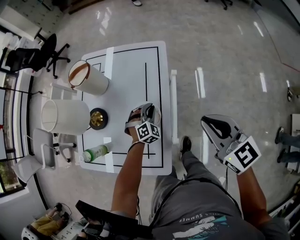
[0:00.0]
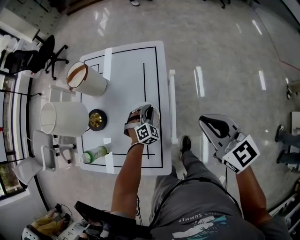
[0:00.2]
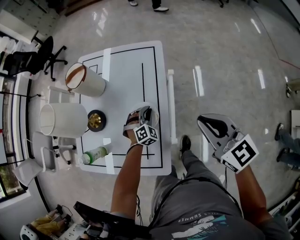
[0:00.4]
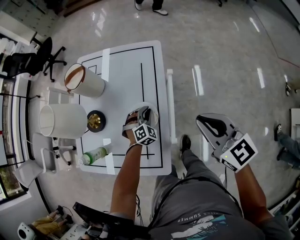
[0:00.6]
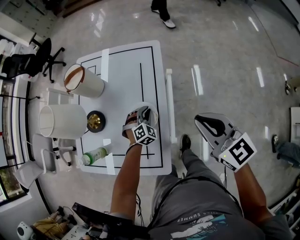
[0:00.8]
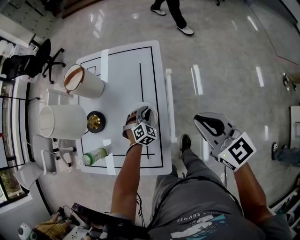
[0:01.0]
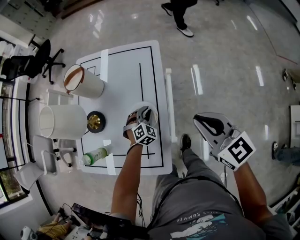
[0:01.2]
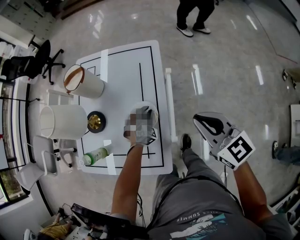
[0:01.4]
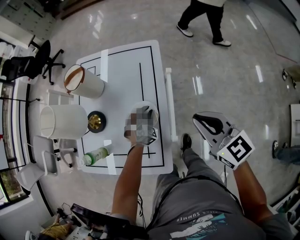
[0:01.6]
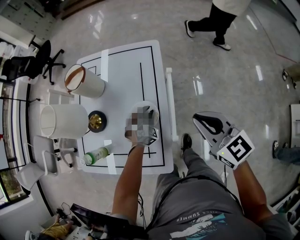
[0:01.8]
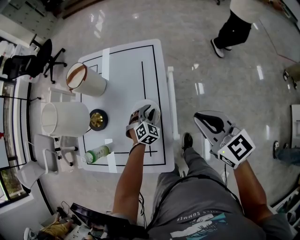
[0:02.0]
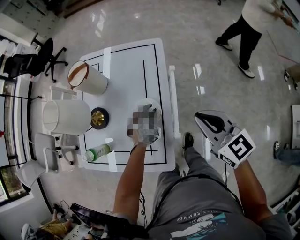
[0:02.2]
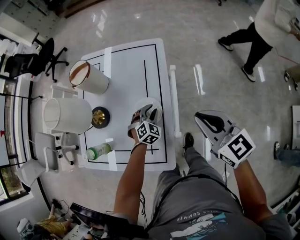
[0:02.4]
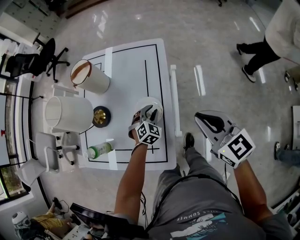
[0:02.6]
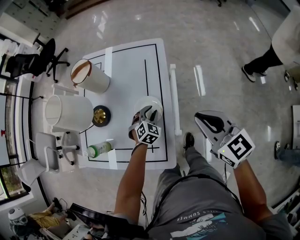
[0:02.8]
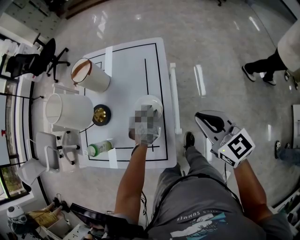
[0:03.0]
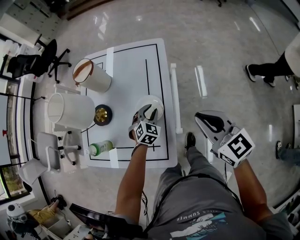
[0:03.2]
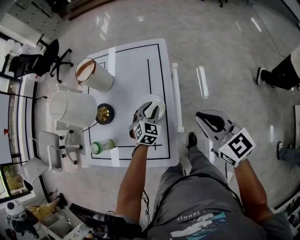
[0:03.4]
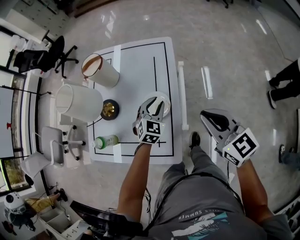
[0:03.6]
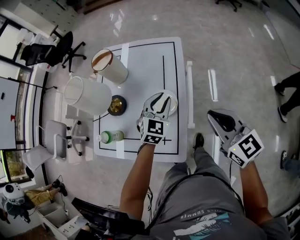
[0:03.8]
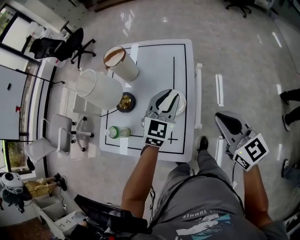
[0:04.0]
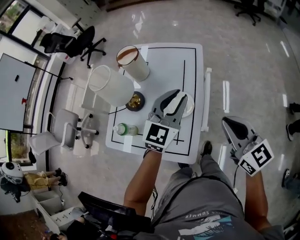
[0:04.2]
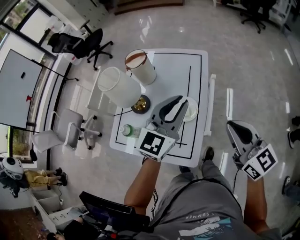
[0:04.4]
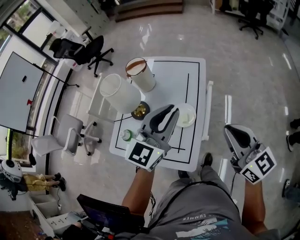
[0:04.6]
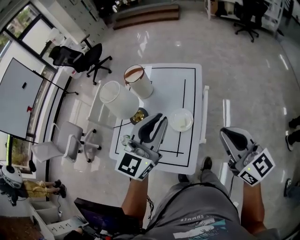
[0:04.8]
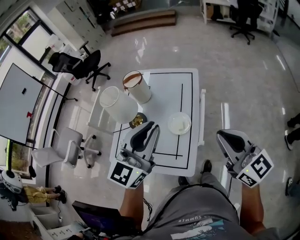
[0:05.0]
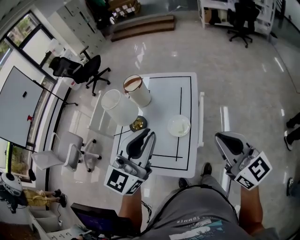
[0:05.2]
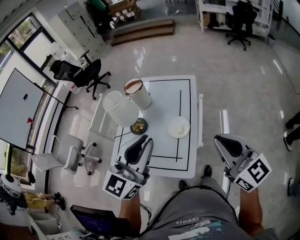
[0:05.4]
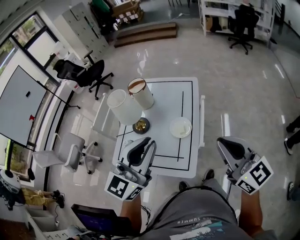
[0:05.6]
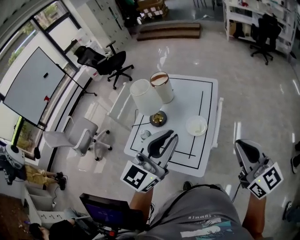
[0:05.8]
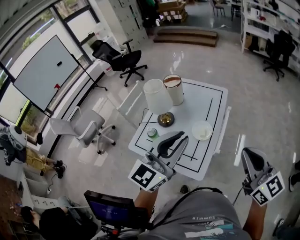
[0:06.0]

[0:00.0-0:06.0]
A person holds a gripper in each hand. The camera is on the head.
0:00.0 to 0:03.0: The grippers make only small movements.
0:03.0 to 0:04.4: The right gripper shifts approximately 10 cm upward and backward, while the left gripper goes about 35 cm upward, and tips its fingers upward by roughly 40 degrees.
0:04.4 to 0:06.0: The two grippers go some 20 cm backward and upward.

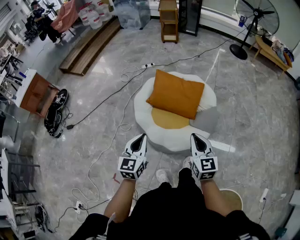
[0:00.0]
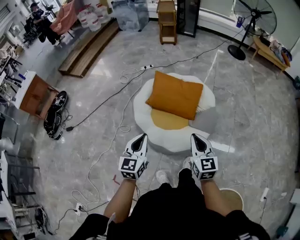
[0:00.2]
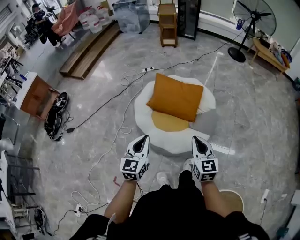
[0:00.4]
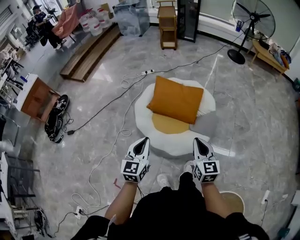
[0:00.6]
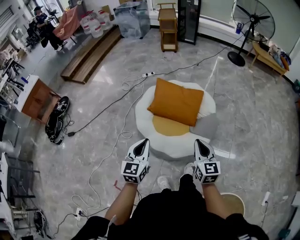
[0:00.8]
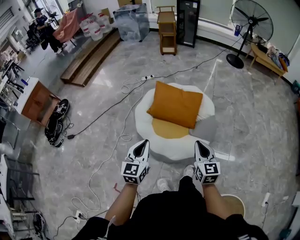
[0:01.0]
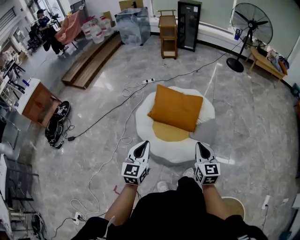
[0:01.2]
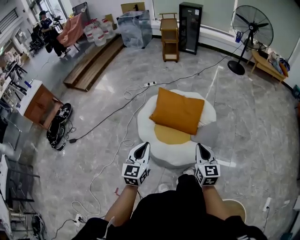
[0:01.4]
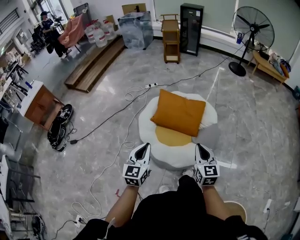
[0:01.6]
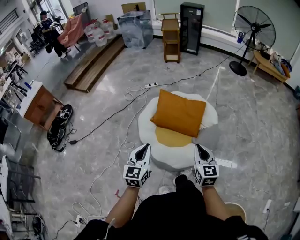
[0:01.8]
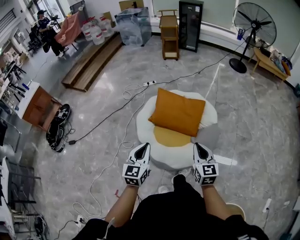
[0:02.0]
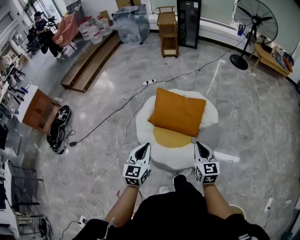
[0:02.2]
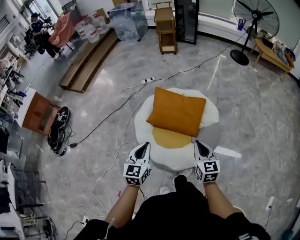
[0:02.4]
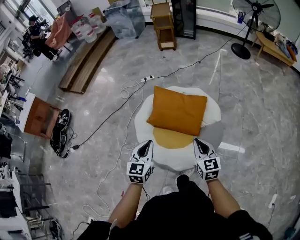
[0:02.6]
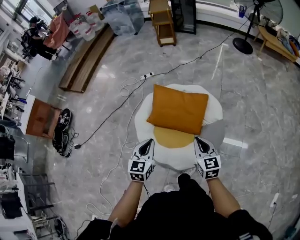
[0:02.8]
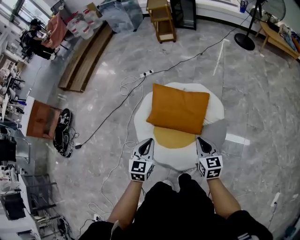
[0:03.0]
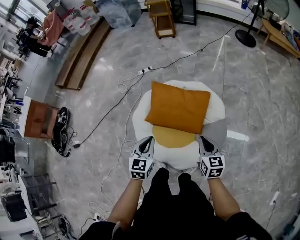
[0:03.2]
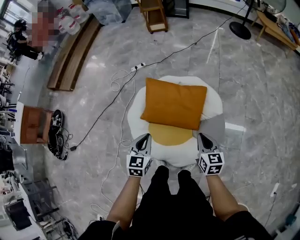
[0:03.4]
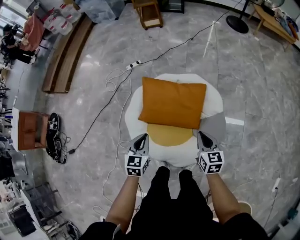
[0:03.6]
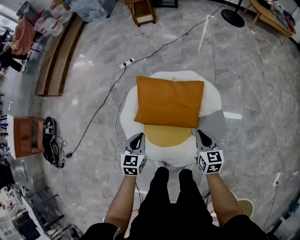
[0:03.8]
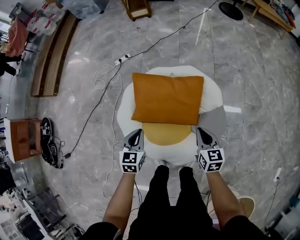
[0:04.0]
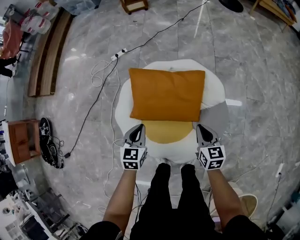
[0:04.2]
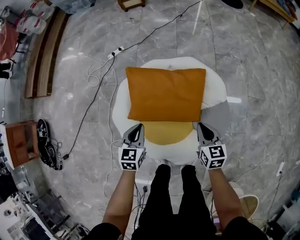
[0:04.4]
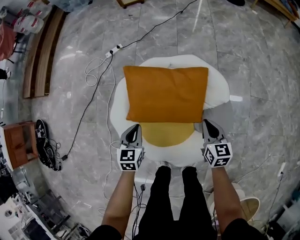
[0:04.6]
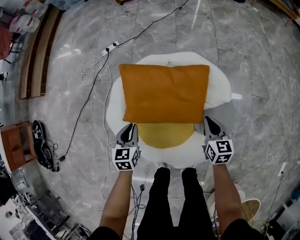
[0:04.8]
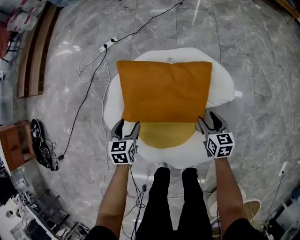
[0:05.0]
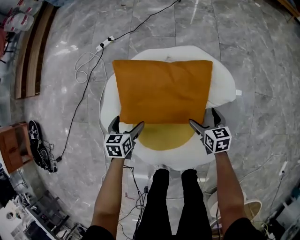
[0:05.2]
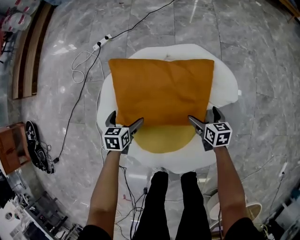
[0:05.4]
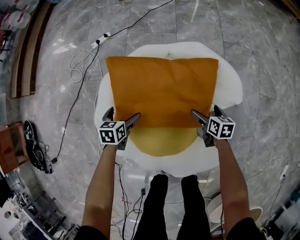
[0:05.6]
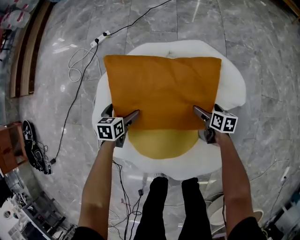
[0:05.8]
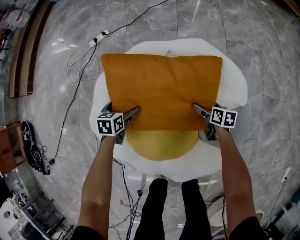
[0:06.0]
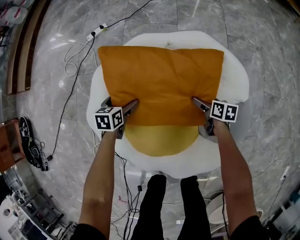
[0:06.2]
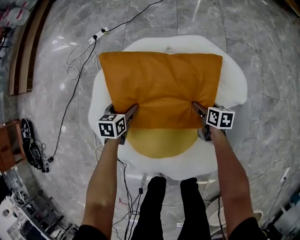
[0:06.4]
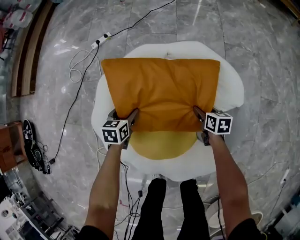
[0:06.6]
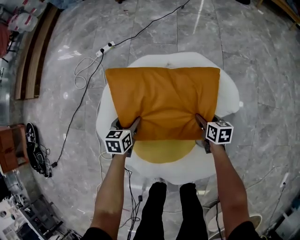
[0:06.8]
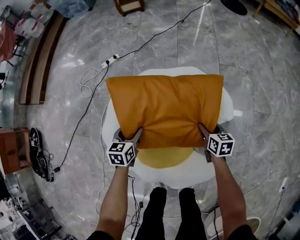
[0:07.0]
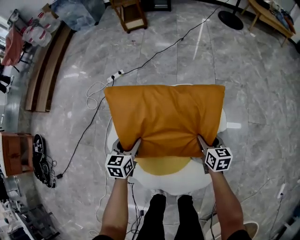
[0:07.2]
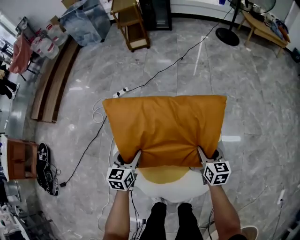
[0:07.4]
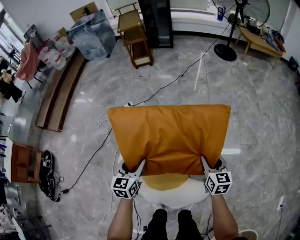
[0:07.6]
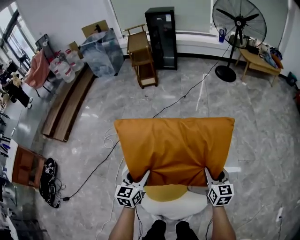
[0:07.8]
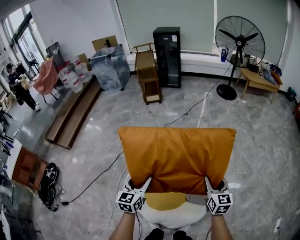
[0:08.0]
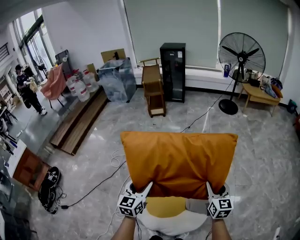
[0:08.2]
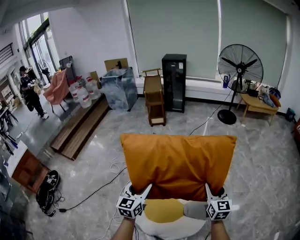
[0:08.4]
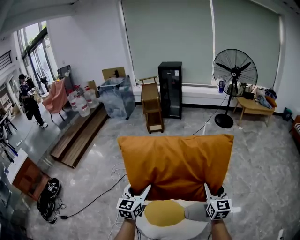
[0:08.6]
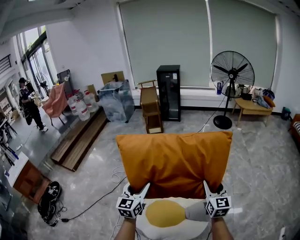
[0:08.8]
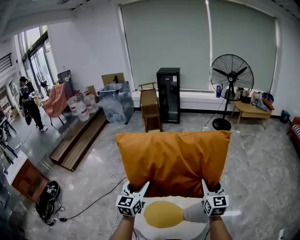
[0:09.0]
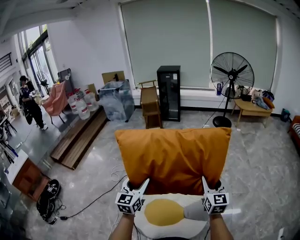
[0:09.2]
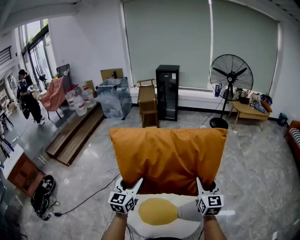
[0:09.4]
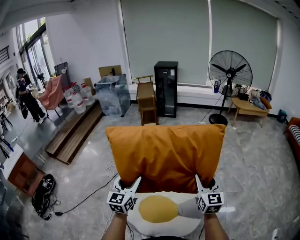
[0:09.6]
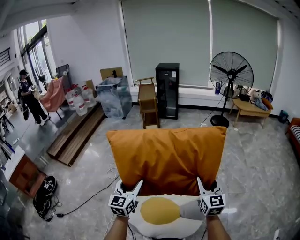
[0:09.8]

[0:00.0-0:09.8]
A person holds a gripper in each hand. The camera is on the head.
0:00.0 to 0:01.4: There are only small adjustments of the grippers.
0:01.4 to 0:02.8: The left gripper is displaced forward and downward by approximately 20 cm. The right gripper goes some 20 cm forward.
0:02.8 to 0:04.2: Both grippers move downward and forward, about 25 cm. The right gripper changes its angle by about 20 degrees.
0:04.2 to 0:05.6: The grippers both shift downward by about 30 cm. The right gripper swivels approximately 20 degrees, and opens up. Meanwhile the left gripper rotates roughly 20 degrees, and opens its fingers.
0:05.6 to 0:07.0: Both grippers travel together upward, roughly 10 cm. The left gripper closes up; the right gripper closes up.
0:07.0 to 0:08.4: The two grippers go approximately 50 cm upward. The left gripper tilts its fingers about 30 degrees upward. Meanwhile the right gripper tips its fingers upward by some 30 degrees.
0:08.4 to 0:09.8: Both grippers move upward, approximately 5 cm.

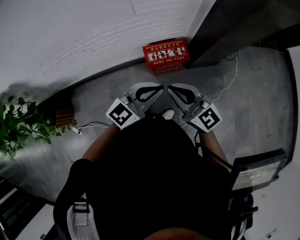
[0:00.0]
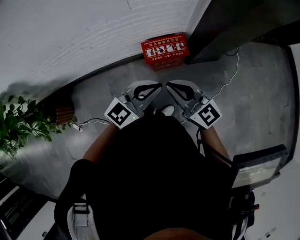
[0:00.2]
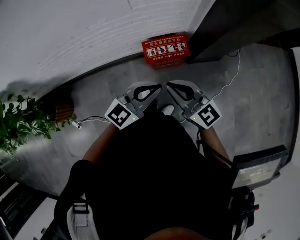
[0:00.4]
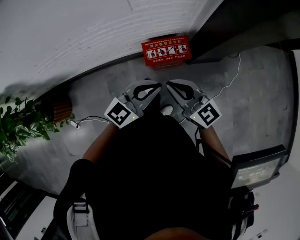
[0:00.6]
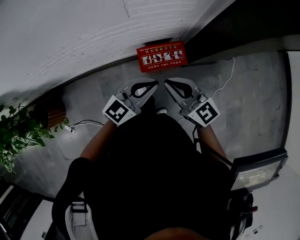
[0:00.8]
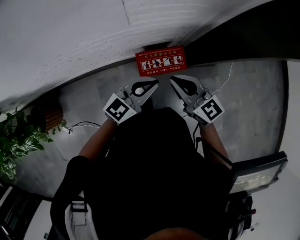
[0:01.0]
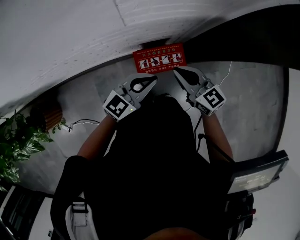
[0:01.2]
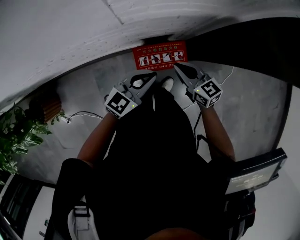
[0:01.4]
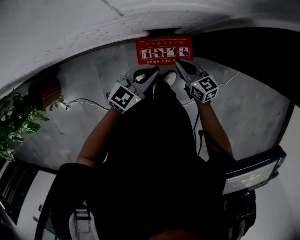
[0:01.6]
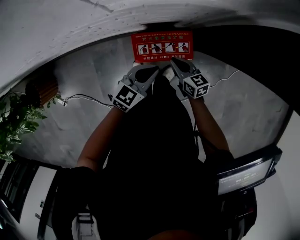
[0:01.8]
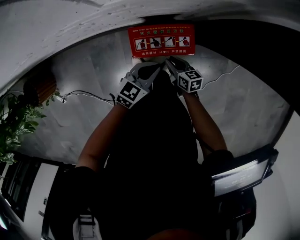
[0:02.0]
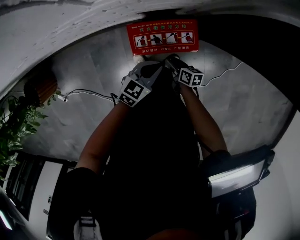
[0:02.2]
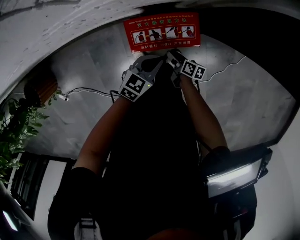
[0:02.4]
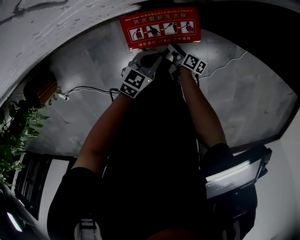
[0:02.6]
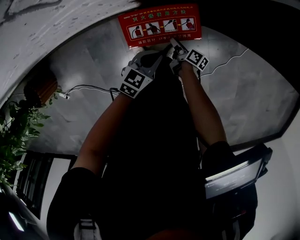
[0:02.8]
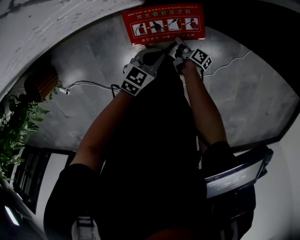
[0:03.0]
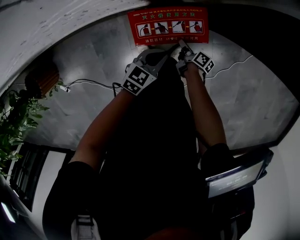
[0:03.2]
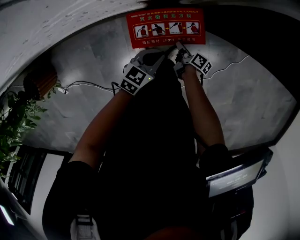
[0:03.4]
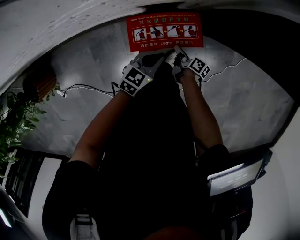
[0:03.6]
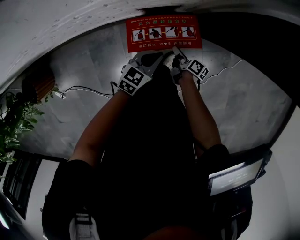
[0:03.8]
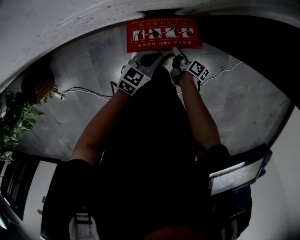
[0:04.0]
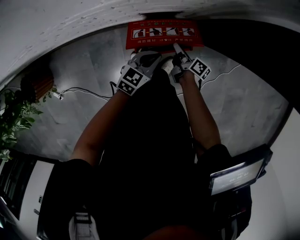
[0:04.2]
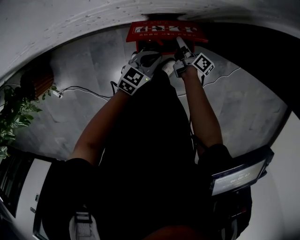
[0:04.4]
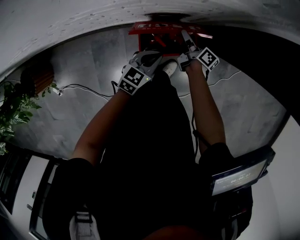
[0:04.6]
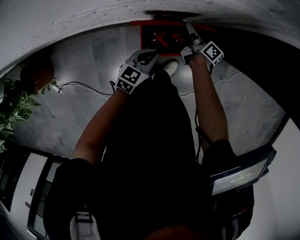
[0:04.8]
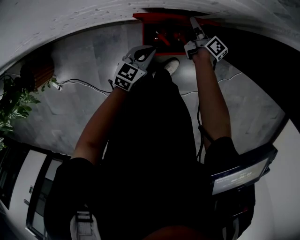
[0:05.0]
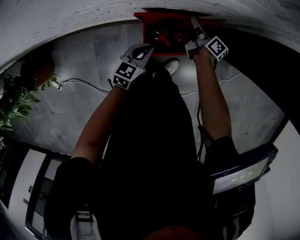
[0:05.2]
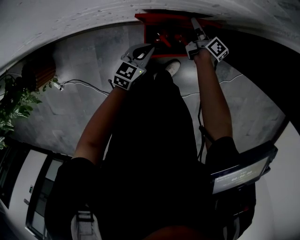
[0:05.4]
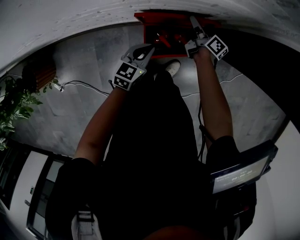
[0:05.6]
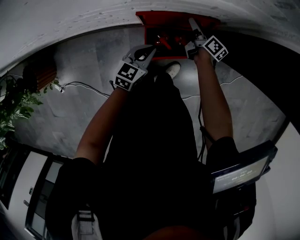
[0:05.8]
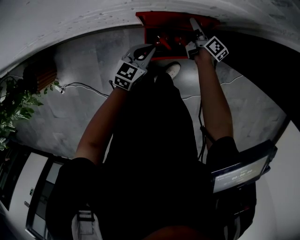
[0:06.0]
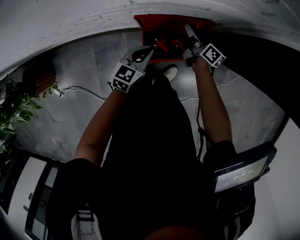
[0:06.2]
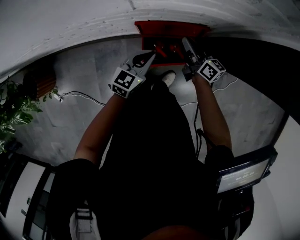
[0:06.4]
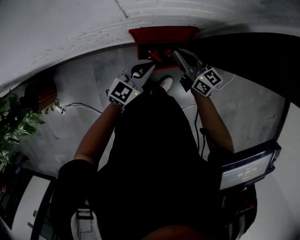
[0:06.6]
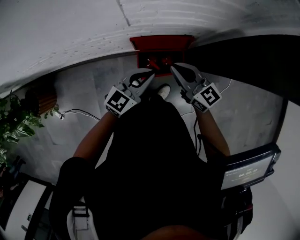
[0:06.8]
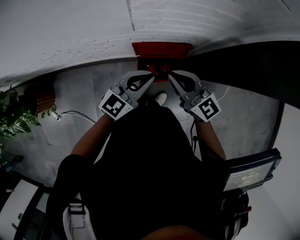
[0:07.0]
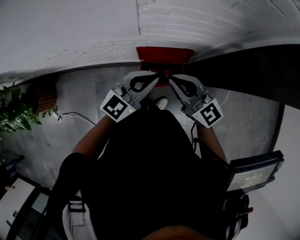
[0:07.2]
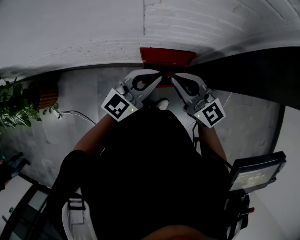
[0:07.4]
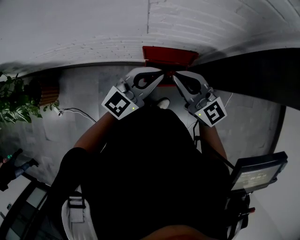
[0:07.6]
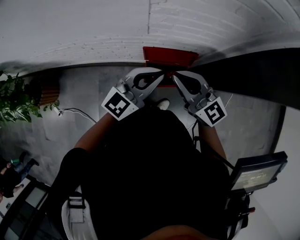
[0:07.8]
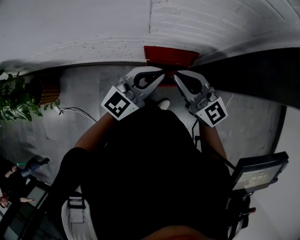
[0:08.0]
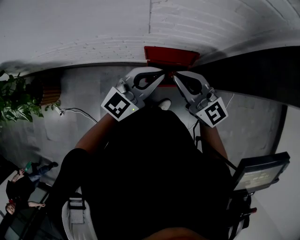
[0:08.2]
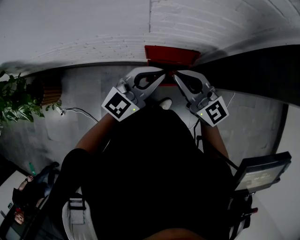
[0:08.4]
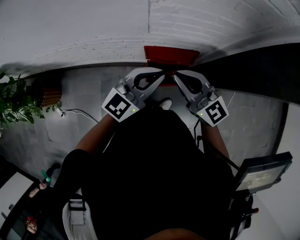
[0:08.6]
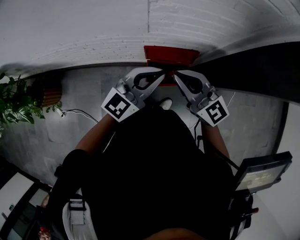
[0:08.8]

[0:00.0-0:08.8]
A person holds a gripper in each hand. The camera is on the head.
0:00.0 to 0:01.4: Both grippers travel together forward and downward, roughly 30 cm. The right gripper turns by some 20 degrees.
0:01.4 to 0:03.0: Both grippers travel together downward, roughly 40 cm. The right gripper rotates around the line of its fingers by about 70 degrees, clockwise from behind, and opens. The left gripper swivels approximately 30 degrees.
0:03.0 to 0:04.4: The left gripper goes approximately 10 cm upward; the right gripper shifts roughly 20 cm upward and forward.
0:04.4 to 0:05.8: The right gripper travels forward by about 10 cm, and opens its fingers; the left gripper moves to the left, roughly 5 cm.
0:05.8 to 0:07.4: The right gripper shifts about 50 cm upward and backward, rotates around the line of its fingers by roughly 70 degrees, counterclockwise from behind, and closes its fingers. Meanwhile the left gripper shifts about 35 cm upward, and tips its fingers upward by about 30 degrees.
0:07.4 to 0:08.8: The grippers move only a little.
